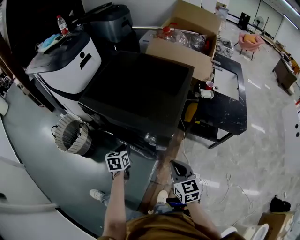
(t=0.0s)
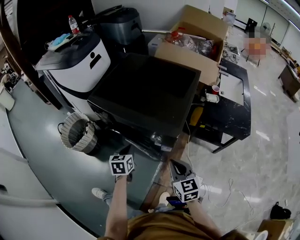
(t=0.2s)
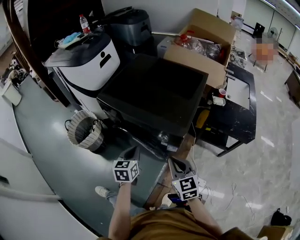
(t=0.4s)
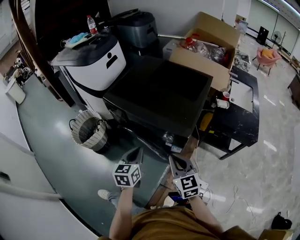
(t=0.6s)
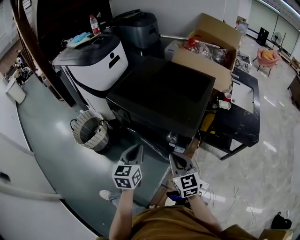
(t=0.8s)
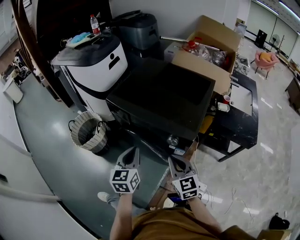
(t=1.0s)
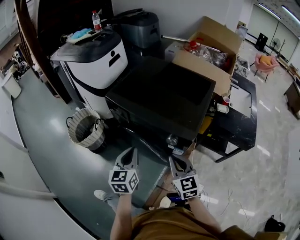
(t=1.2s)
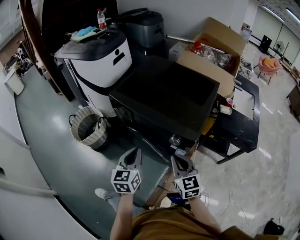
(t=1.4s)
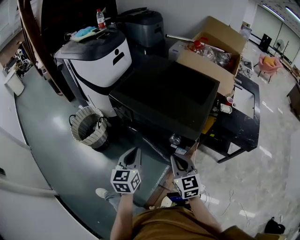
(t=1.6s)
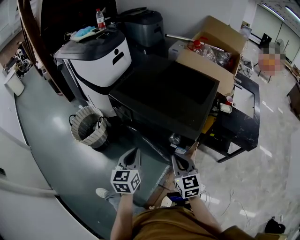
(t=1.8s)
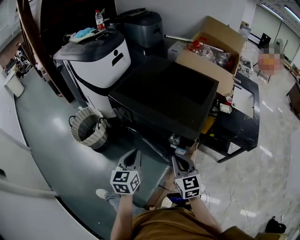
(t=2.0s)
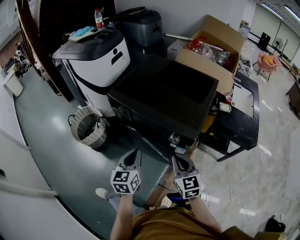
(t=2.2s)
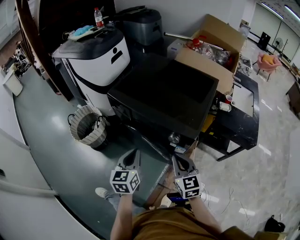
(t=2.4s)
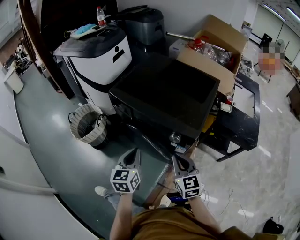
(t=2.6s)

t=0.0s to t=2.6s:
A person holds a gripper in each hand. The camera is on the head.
t=0.0s to t=1.2s: The right gripper shifts about 10 cm to the left and upward; the left gripper shifts some 20 cm upward and backward, and changes its angle by about 30 degrees.
t=1.2s to t=2.6s: The grippers stay close to where they were, moving slightly.

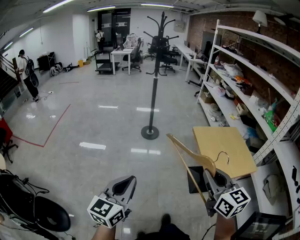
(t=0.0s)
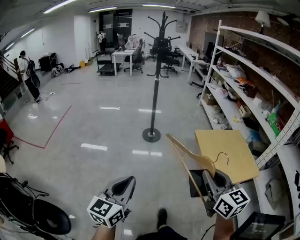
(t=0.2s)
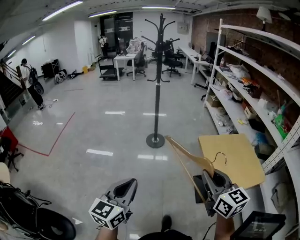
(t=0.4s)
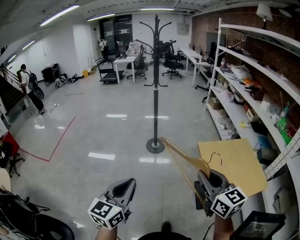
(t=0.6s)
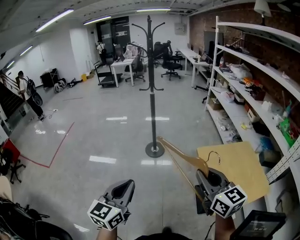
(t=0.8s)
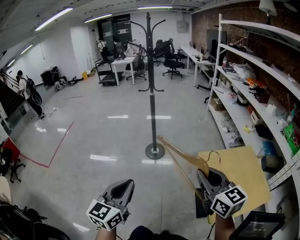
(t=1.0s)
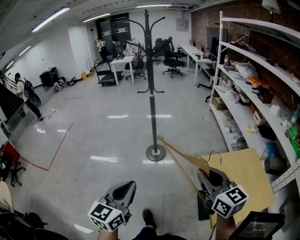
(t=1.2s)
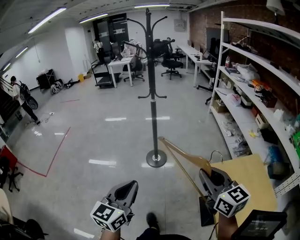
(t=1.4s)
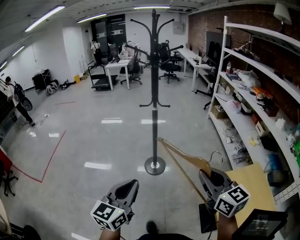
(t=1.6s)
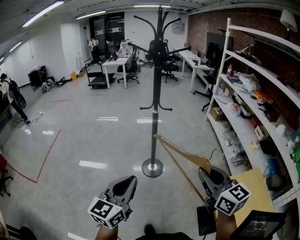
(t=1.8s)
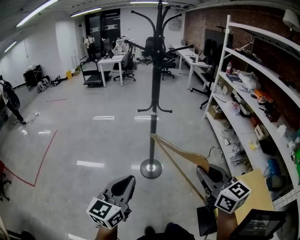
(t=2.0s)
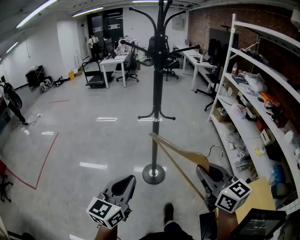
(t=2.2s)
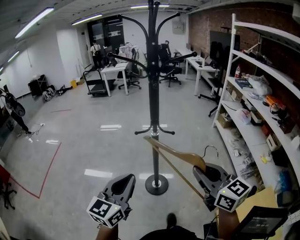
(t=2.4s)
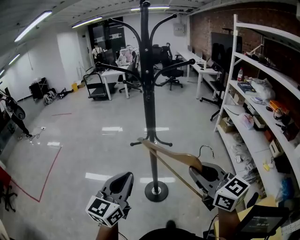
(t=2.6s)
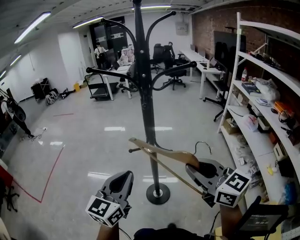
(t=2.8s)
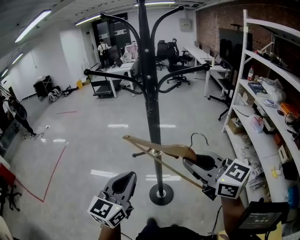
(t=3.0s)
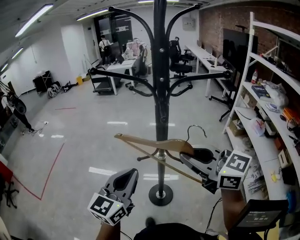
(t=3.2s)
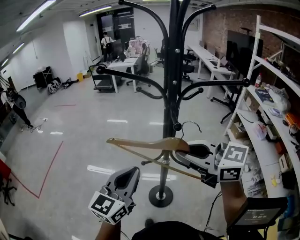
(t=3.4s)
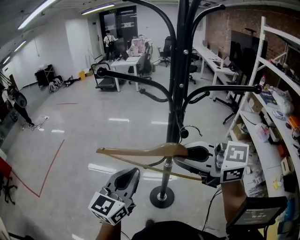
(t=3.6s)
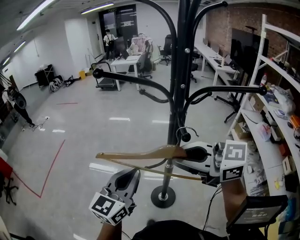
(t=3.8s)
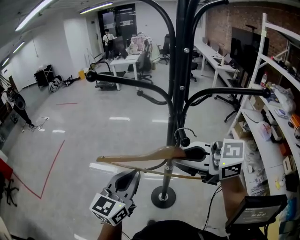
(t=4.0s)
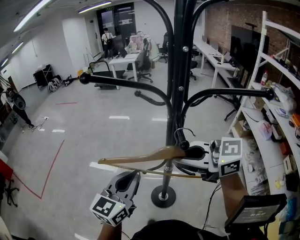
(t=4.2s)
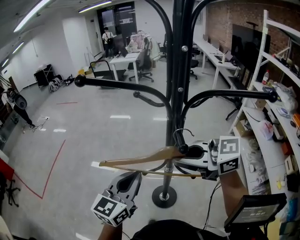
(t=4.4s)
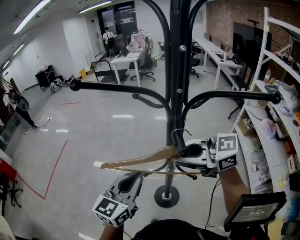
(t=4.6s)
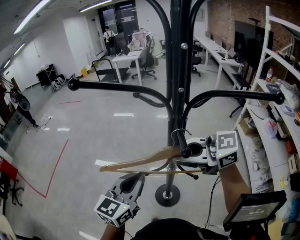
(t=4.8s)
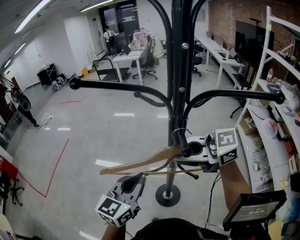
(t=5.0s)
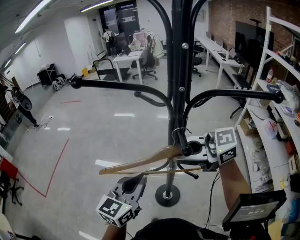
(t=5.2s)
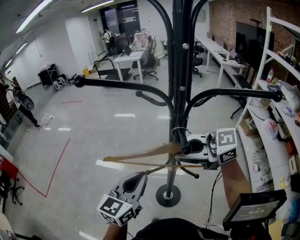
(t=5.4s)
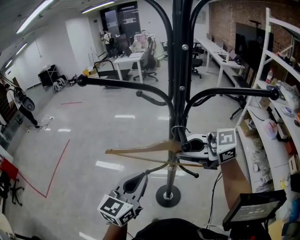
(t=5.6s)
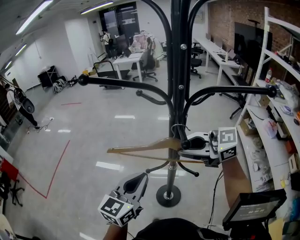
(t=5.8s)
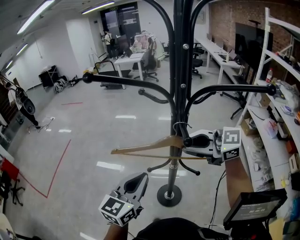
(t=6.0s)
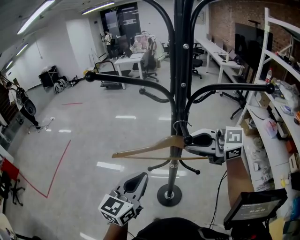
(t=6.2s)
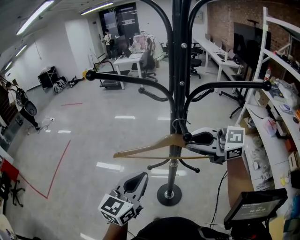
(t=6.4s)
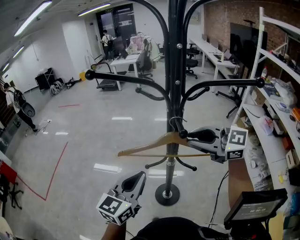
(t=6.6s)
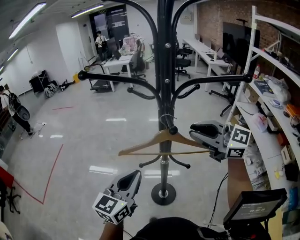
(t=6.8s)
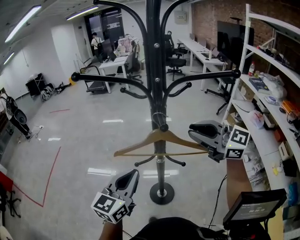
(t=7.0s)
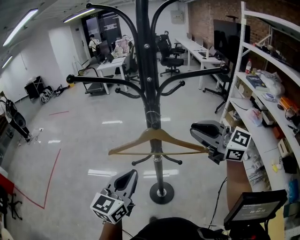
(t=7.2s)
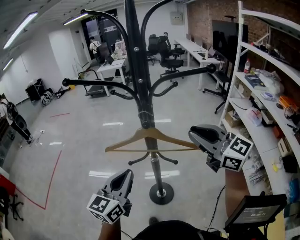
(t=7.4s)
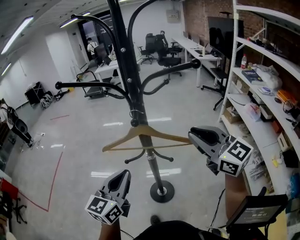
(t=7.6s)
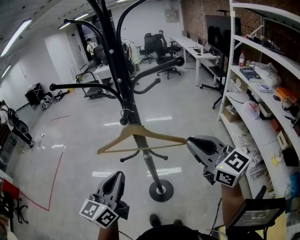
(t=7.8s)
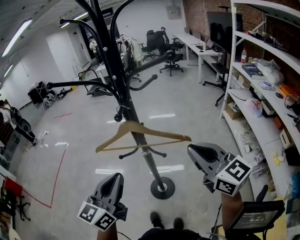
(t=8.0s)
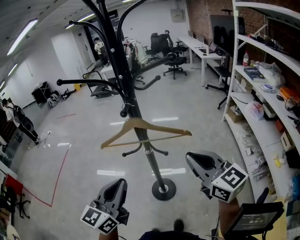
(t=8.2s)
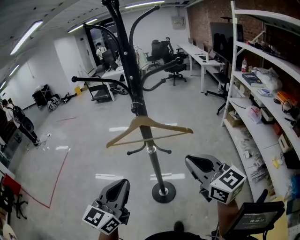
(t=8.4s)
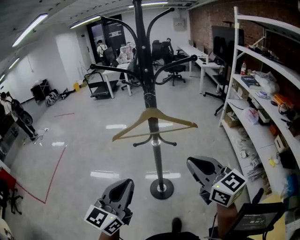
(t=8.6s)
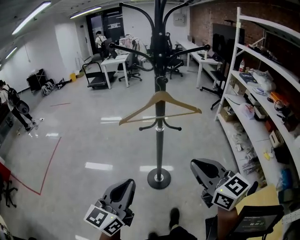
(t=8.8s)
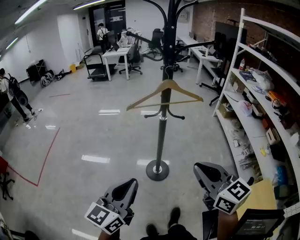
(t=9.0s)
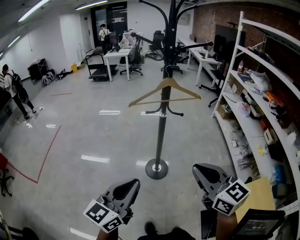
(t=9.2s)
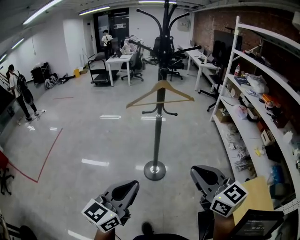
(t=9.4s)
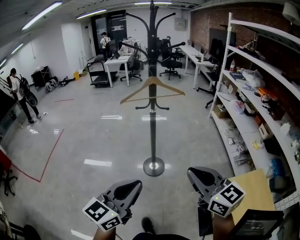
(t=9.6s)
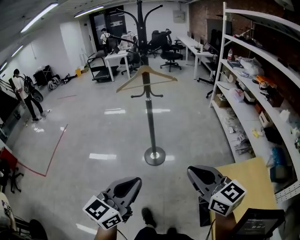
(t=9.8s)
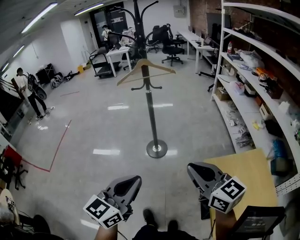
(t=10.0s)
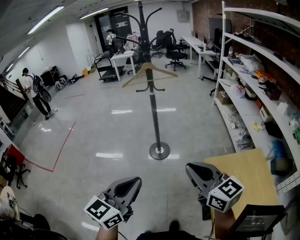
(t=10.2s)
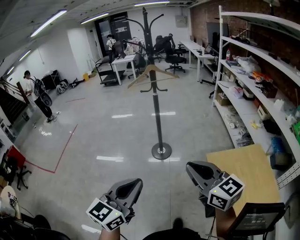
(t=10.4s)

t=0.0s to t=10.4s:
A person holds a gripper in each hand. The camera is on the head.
t=0.0s to t=1.4s: The two grippers go roughly 40 cm forward.
t=1.4s to t=3.0s: The pair of grippers is taken forward, about 50 cm. The right gripper rotates some 30 degrees.
t=3.0s to t=4.4s: The two grippers go about 15 cm forward. The right gripper changes its angle by roughly 30 degrees.
t=4.4s to t=6.0s: The grippers move only a little.
t=6.0s to t=7.4s: The right gripper moves to the right, backward and upward, about 15 cm, and swivels about 40 degrees.
t=7.4s to t=9.0s: The two grippers go roughly 30 cm backward. The right gripper swivels roughly 20 degrees.
t=9.0s to t=10.4s: The grippers both shift backward by about 35 cm.

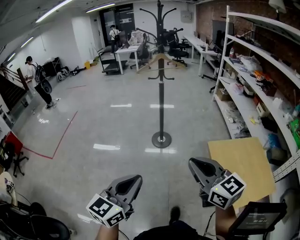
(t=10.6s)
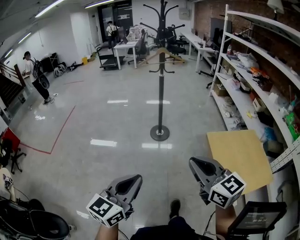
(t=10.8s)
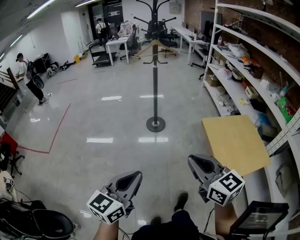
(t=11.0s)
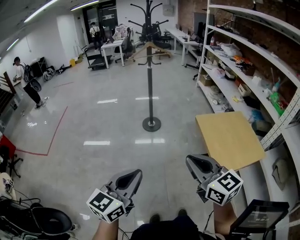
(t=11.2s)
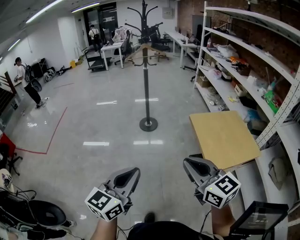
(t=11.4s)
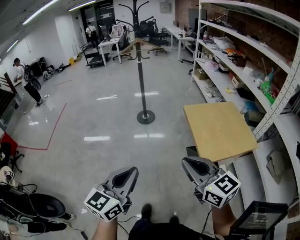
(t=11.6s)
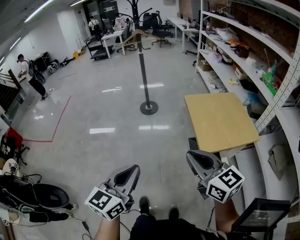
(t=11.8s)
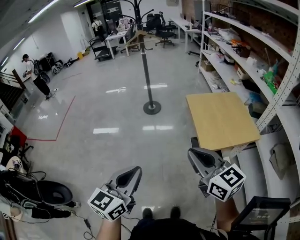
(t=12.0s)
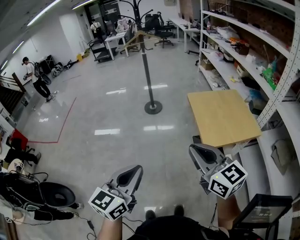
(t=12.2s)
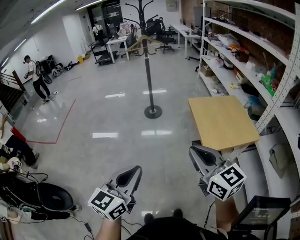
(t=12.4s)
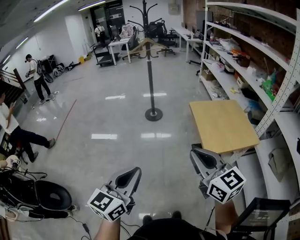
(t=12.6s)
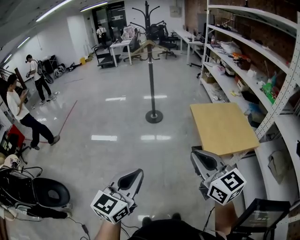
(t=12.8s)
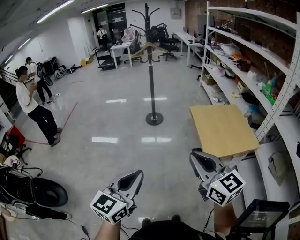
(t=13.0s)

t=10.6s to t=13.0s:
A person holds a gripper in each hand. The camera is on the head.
t=10.6s to t=11.8s: The two grippers go roughly 30 cm backward.
t=11.8s to t=13.0s: The left gripper shifts about 5 cm backward; the right gripper ends up approximately 5 cm from where it was.

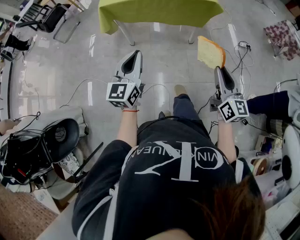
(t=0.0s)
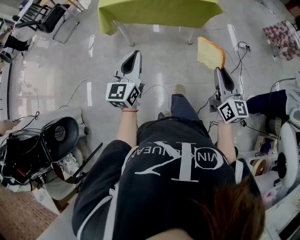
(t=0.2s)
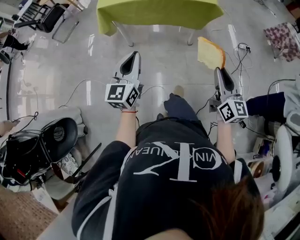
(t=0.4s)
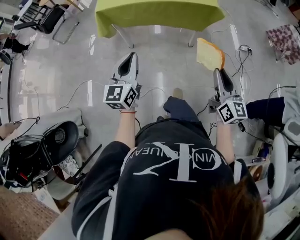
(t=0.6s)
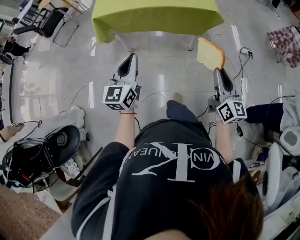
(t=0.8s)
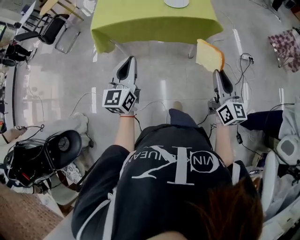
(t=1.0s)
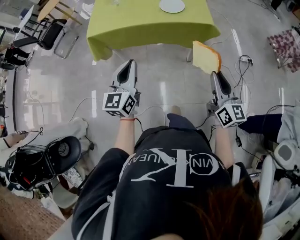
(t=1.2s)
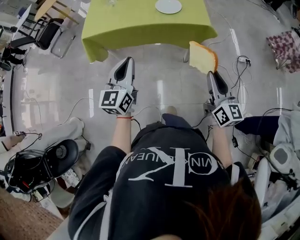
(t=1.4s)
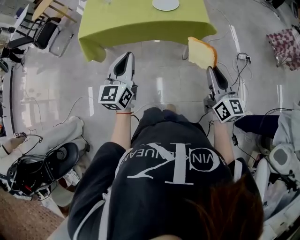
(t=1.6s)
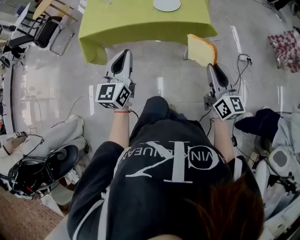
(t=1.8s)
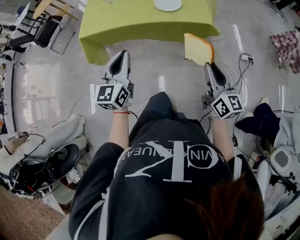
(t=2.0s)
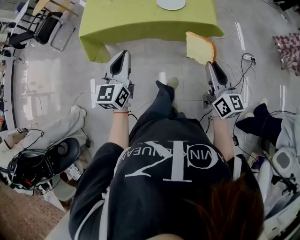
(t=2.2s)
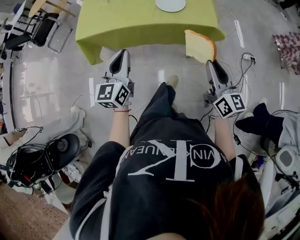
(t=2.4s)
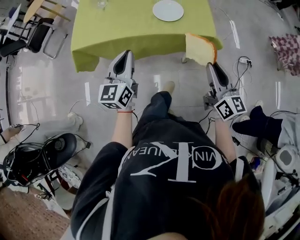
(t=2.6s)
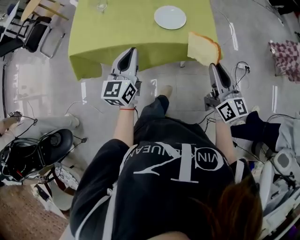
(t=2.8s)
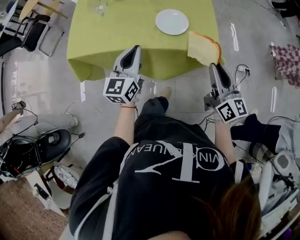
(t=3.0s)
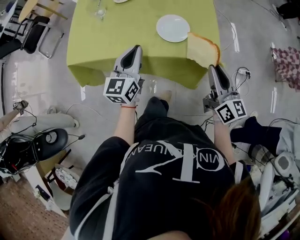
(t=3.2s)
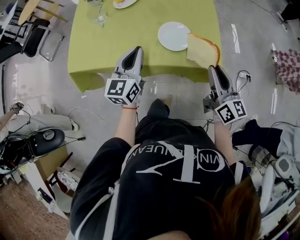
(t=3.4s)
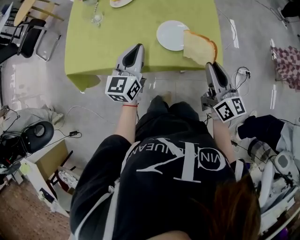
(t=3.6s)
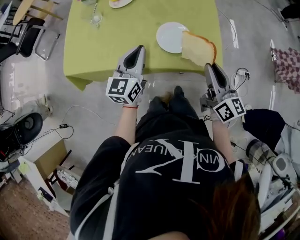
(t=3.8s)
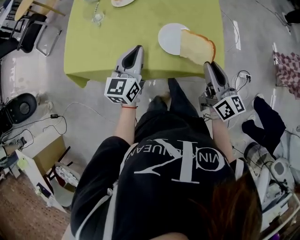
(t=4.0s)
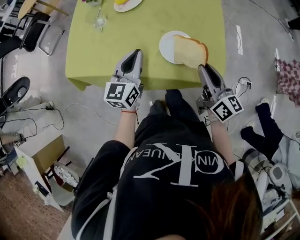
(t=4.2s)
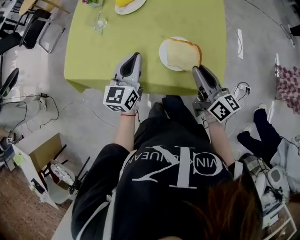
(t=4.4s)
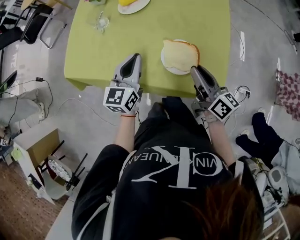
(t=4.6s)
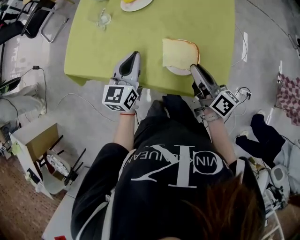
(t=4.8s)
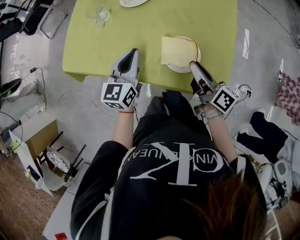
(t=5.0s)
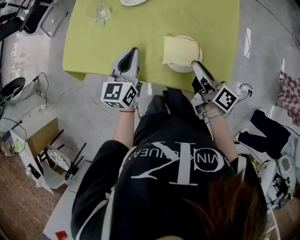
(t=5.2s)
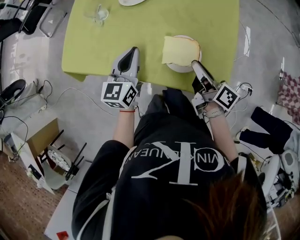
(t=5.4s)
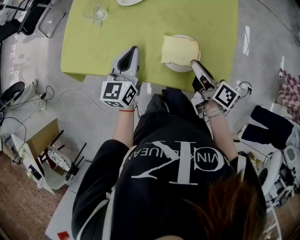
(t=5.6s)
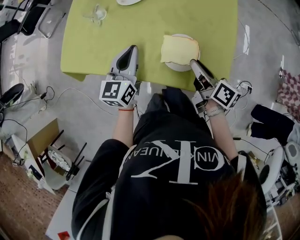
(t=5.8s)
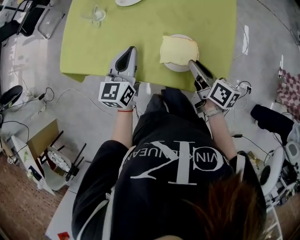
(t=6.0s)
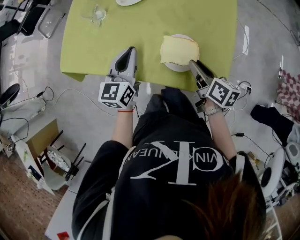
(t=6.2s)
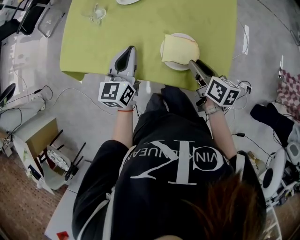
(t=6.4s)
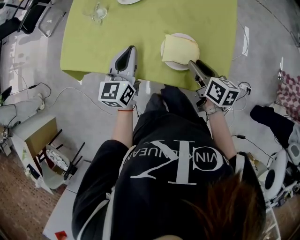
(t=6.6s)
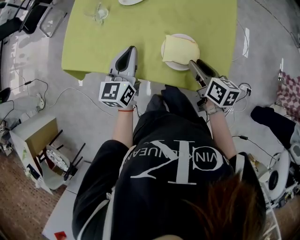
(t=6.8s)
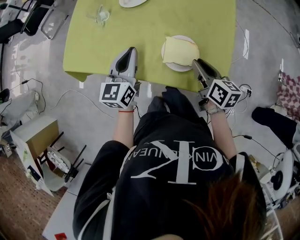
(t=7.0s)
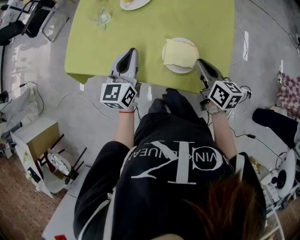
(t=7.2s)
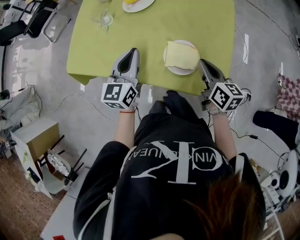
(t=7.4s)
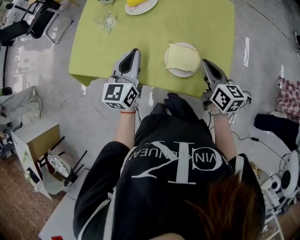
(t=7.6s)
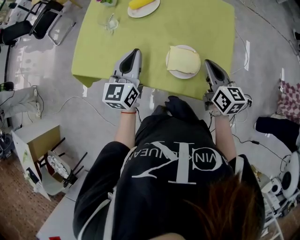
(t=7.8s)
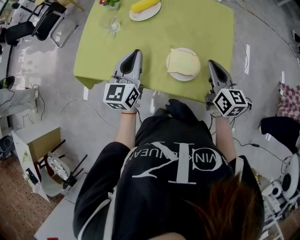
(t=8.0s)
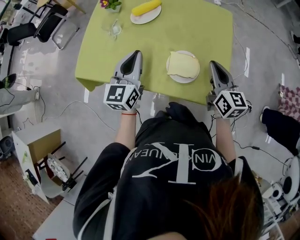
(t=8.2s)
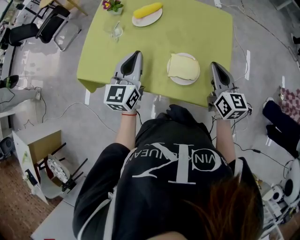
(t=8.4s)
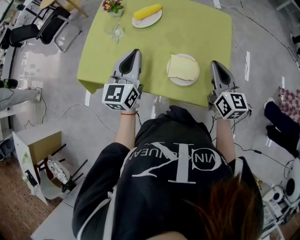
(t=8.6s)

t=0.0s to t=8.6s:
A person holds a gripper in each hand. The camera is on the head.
t=0.0s to t=1.4s: Both grippers move forward, some 20 cm.
t=1.4s to t=2.8s: Both grippers move forward, some 20 cm.
t=2.8s to t=4.4s: Both grippers travel together forward, about 20 cm. The right gripper turns by about 20 degrees.
t=4.4s to t=5.8s: The right gripper goes approximately 10 cm downward and forward, and changes its angle by roughly 30 degrees.
t=5.8s to t=7.2s: The right gripper rotates roughly 30 degrees.
t=7.2s to t=8.6s: Both grippers travel together upward, approximately 10 cm. The right gripper rotates about 30 degrees.
